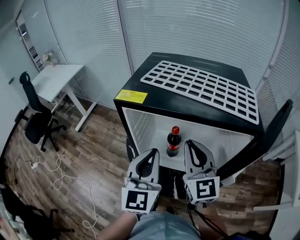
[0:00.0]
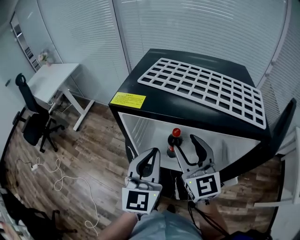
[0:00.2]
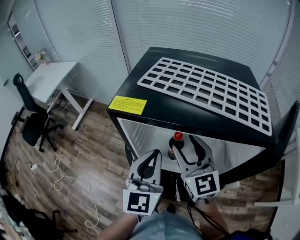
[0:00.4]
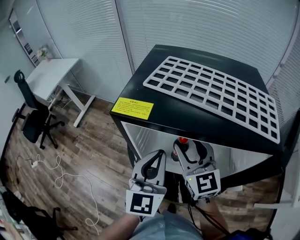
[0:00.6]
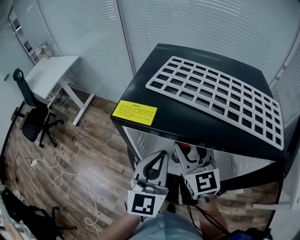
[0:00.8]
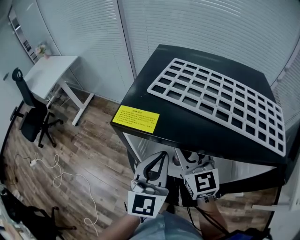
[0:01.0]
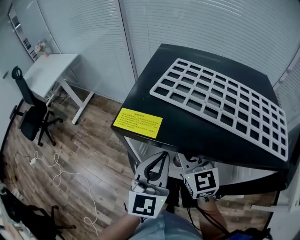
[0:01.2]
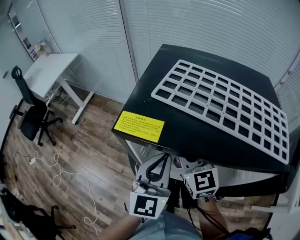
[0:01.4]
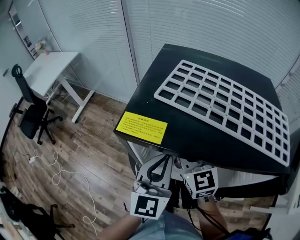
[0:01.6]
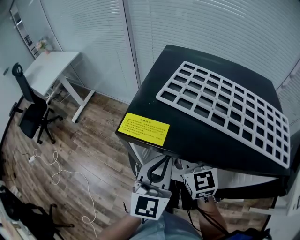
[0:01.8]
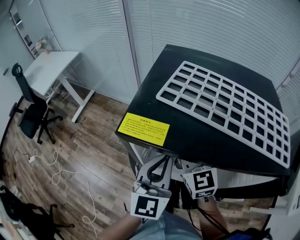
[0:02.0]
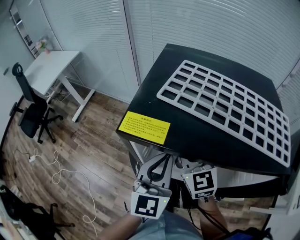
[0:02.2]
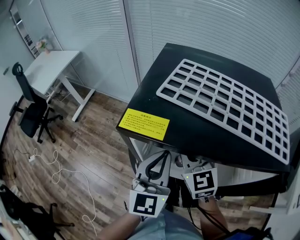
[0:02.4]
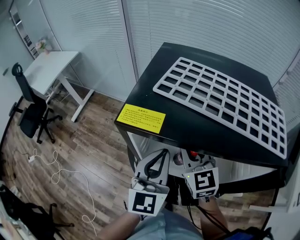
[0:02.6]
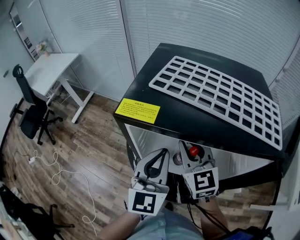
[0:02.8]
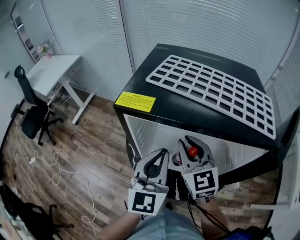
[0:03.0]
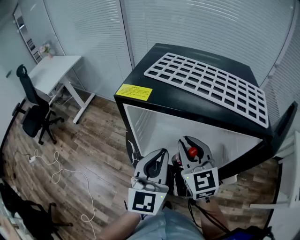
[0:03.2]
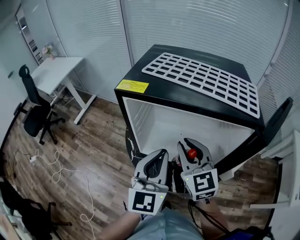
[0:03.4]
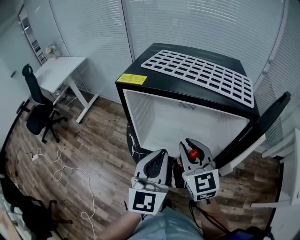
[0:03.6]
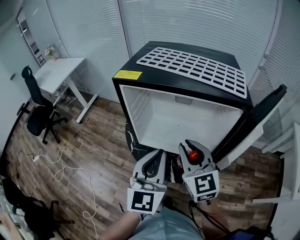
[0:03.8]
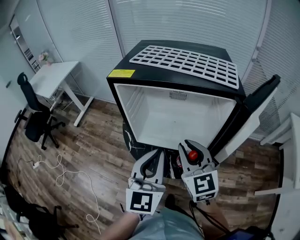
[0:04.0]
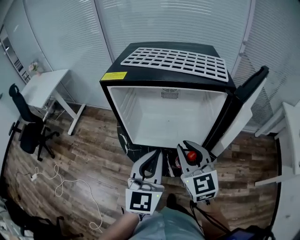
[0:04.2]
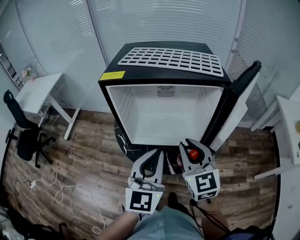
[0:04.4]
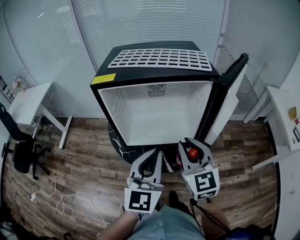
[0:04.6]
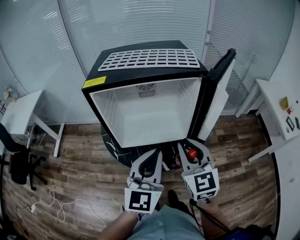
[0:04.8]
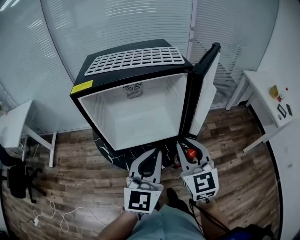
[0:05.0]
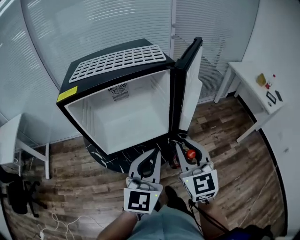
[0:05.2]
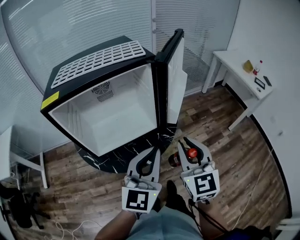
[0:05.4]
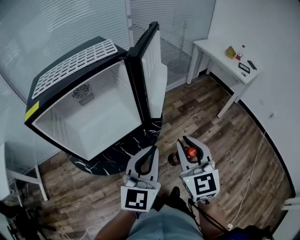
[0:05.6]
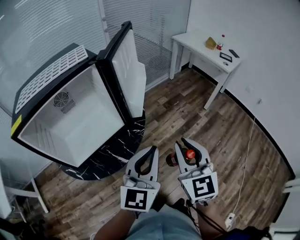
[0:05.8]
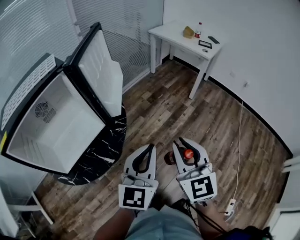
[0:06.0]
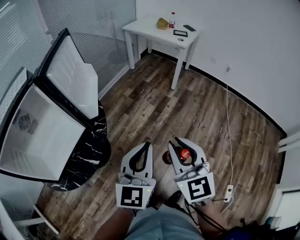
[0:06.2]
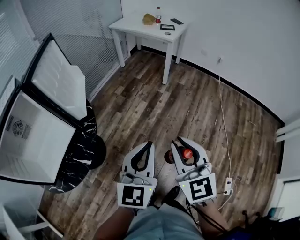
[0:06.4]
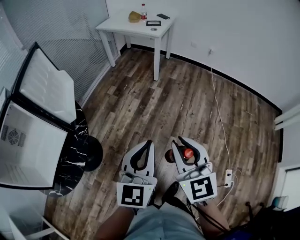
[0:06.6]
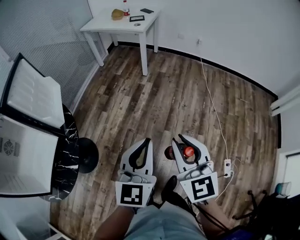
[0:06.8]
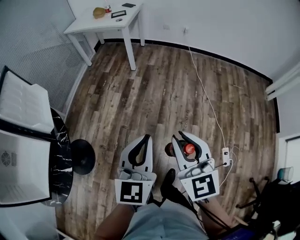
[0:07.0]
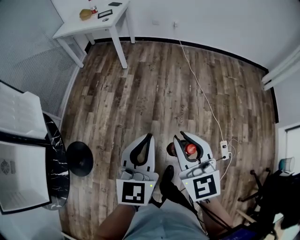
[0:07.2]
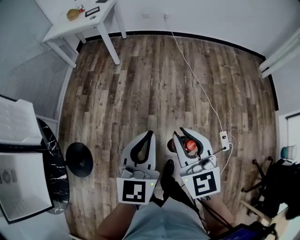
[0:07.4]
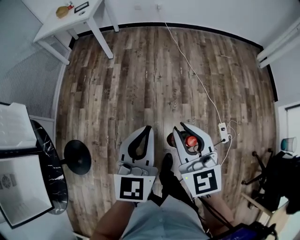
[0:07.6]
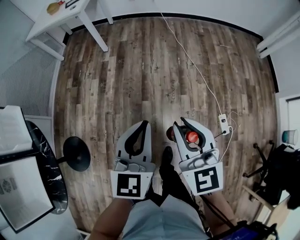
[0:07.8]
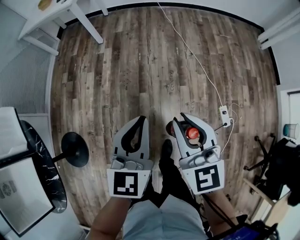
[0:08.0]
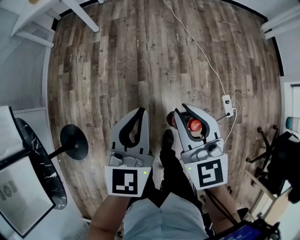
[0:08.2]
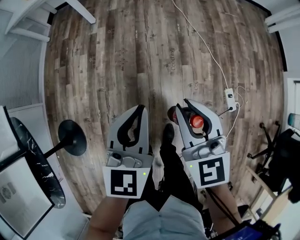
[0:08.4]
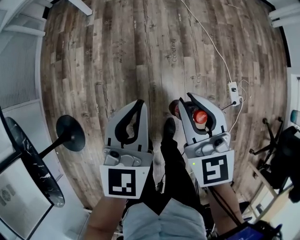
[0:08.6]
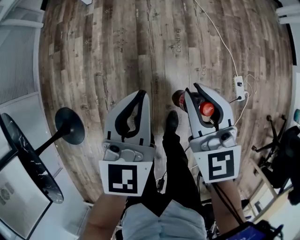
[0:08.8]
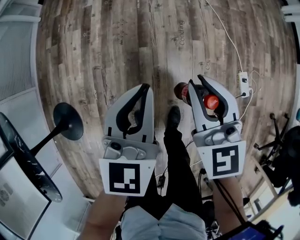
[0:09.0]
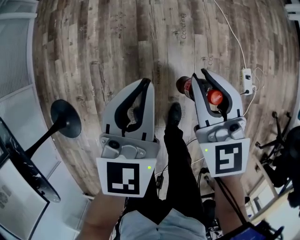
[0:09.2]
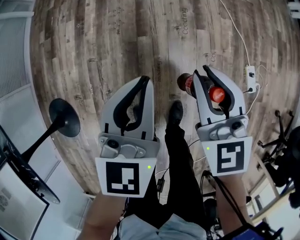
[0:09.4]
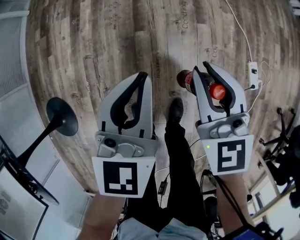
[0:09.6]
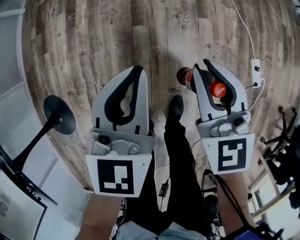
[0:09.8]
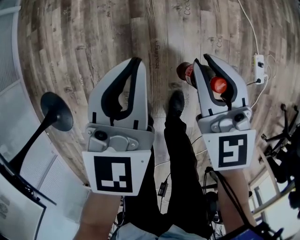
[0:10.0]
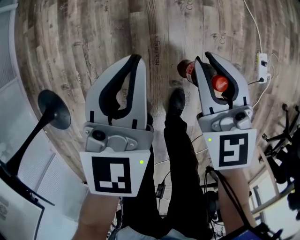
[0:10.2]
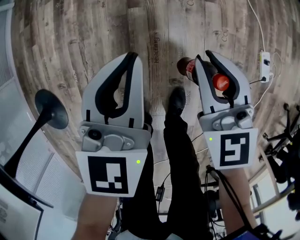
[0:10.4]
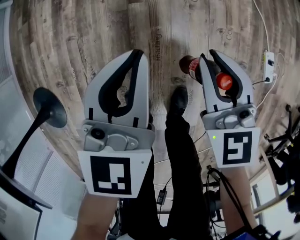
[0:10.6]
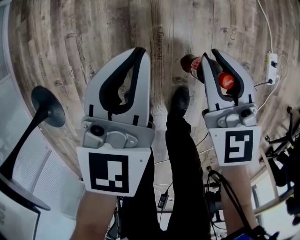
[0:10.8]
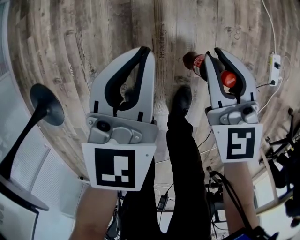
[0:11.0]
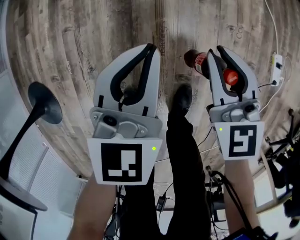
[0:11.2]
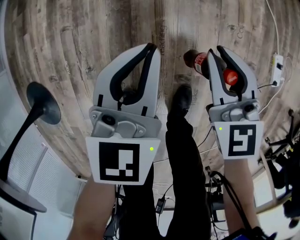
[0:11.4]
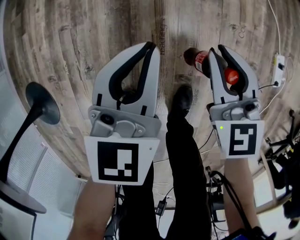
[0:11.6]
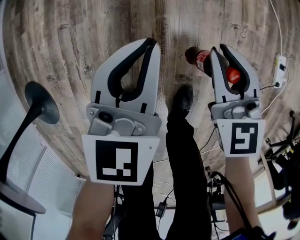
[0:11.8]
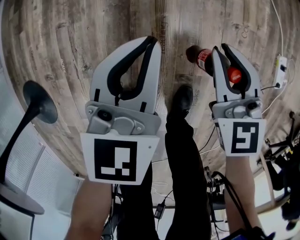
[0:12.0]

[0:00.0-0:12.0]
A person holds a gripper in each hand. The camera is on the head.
0:00.0 to 0:01.6: The right gripper heads forward, downward and to the left, covering roughly 15 cm, and opens up, while the left gripper moves forward, roughly 10 cm.
0:01.6 to 0:03.0: The two grippers go approximately 5 cm backward. The right gripper closes its fingers.
0:03.0 to 0:04.4: Both grippers travel together backward, about 15 cm.
0:04.4 to 0:06.0: The right gripper moves about 35 cm, and swivels about 60 degrees, while the left gripper shifts by approximately 30 cm, and changes its angle by about 60 degrees.
0:06.0 to 0:07.6: The two grippers travel together, roughly 50 cm. The right gripper changes its angle by some 40 degrees. Meanwhile the left gripper turns by some 40 degrees.
0:07.6 to 0:09.0: Both grippers travel together downward, approximately 25 cm.
0:09.0 to 0:10.4: The two grippers go some 25 cm downward.
0:10.4 to 0:12.0: The two grippers go roughly 15 cm downward.

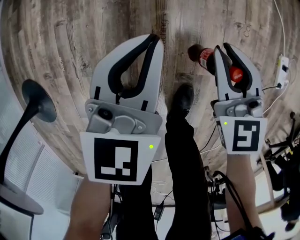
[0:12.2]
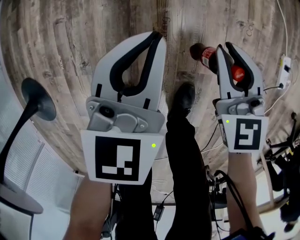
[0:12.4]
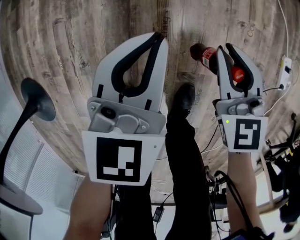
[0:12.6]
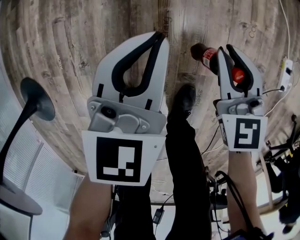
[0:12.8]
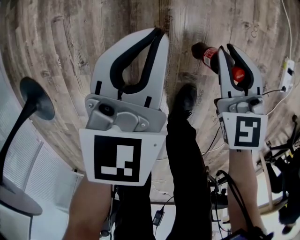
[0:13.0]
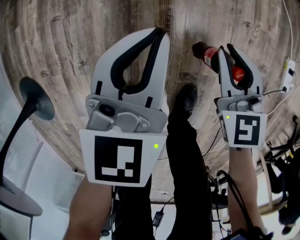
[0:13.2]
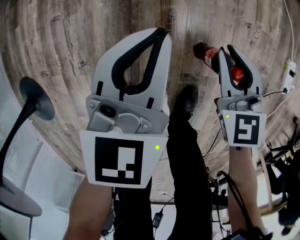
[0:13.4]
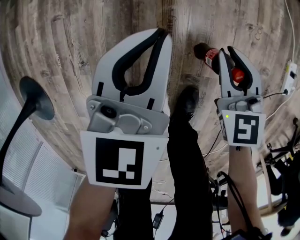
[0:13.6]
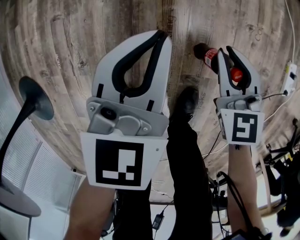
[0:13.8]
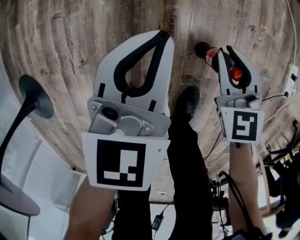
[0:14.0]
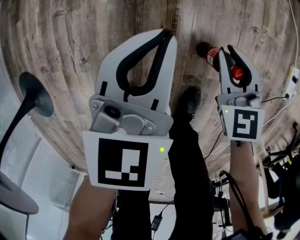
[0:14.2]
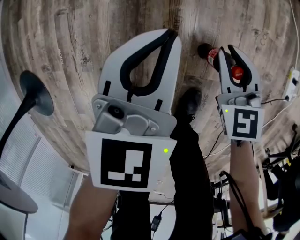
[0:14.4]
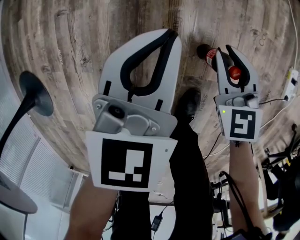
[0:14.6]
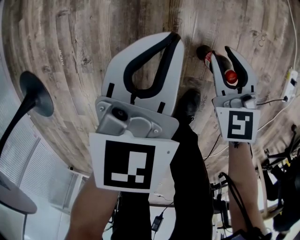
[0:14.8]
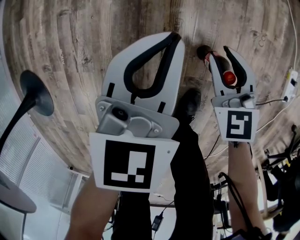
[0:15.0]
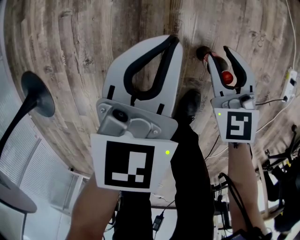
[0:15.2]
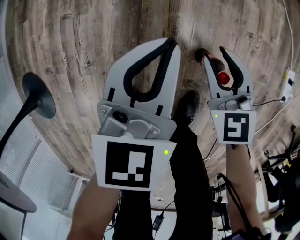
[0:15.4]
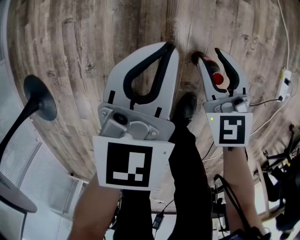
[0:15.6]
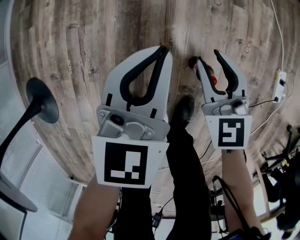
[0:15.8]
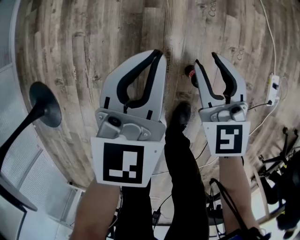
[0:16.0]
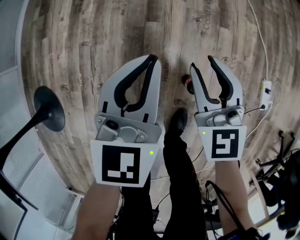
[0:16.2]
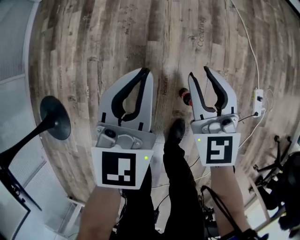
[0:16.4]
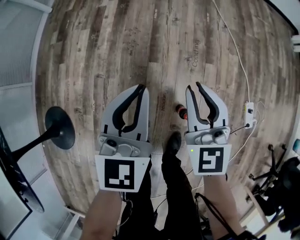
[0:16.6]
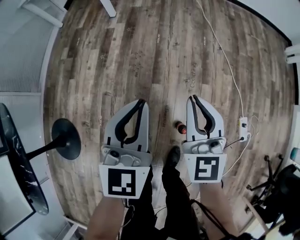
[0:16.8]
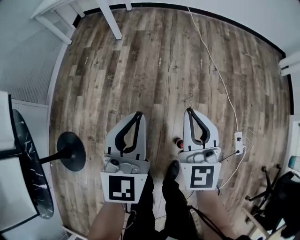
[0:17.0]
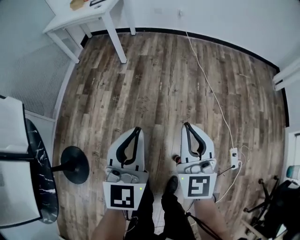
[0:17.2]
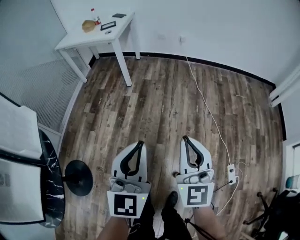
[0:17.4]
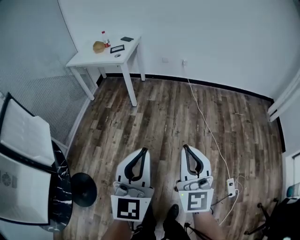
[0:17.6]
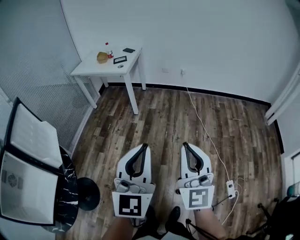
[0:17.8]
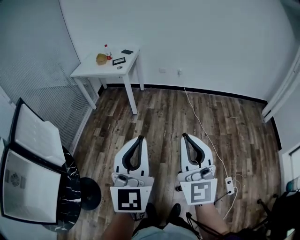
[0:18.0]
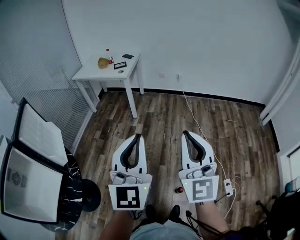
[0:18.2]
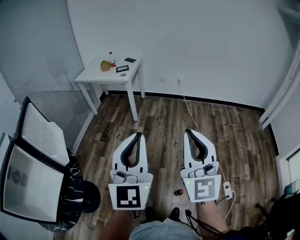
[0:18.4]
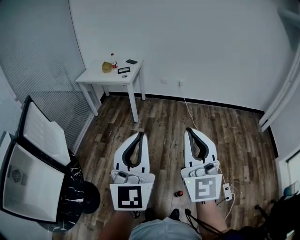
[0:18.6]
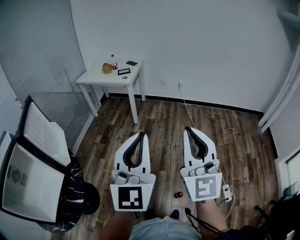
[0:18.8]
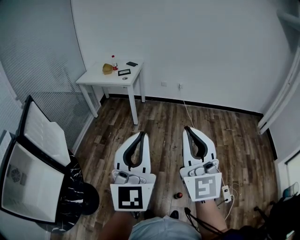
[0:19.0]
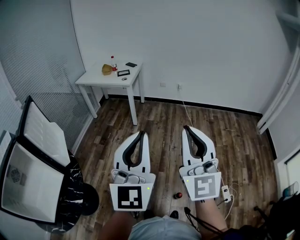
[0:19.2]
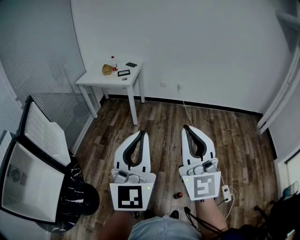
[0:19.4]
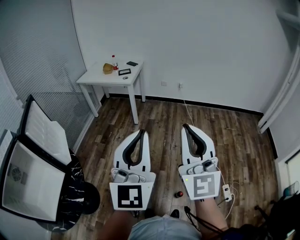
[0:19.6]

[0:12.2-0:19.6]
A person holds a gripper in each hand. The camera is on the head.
0:12.2 to 0:13.6: The right gripper moves downward, some 10 cm.
0:13.6 to 0:15.2: There are only small adjustments of the grippers.
0:15.2 to 0:16.6: The two grippers go about 35 cm upward. The right gripper changes its angle by about 20 degrees.
0:16.6 to 0:18.2: Both grippers move upward, roughly 60 cm. The left gripper angles its fingers upward, by approximately 30 degrees, while the right gripper tips its fingers upward by roughly 30 degrees.
0:18.2 to 0:19.6: The left gripper ends up some 5 cm from where it was; the right gripper goes roughly 5 cm upward.

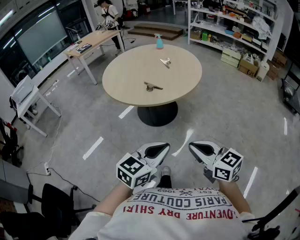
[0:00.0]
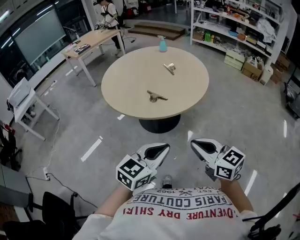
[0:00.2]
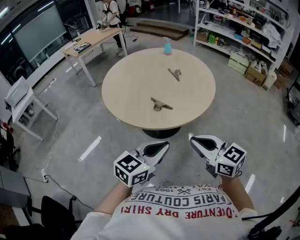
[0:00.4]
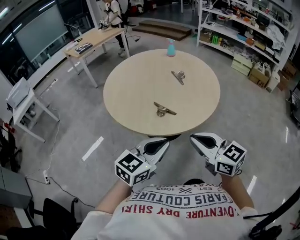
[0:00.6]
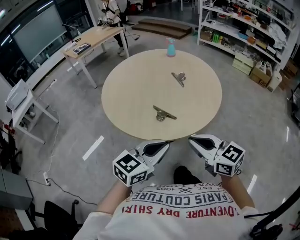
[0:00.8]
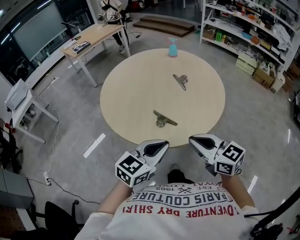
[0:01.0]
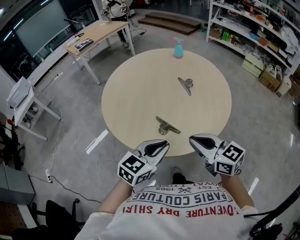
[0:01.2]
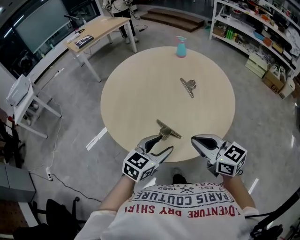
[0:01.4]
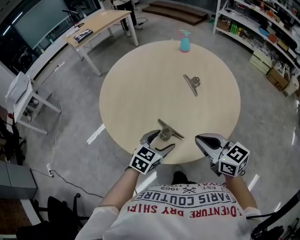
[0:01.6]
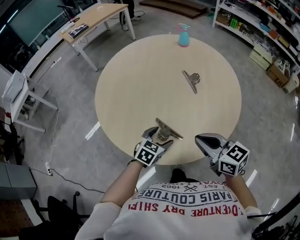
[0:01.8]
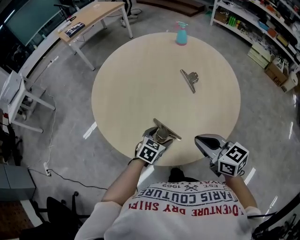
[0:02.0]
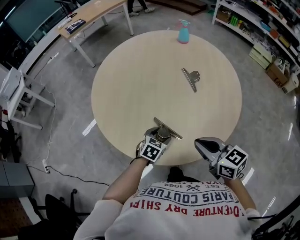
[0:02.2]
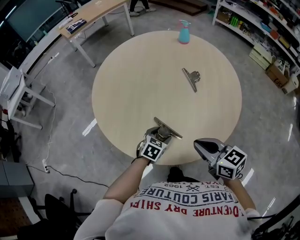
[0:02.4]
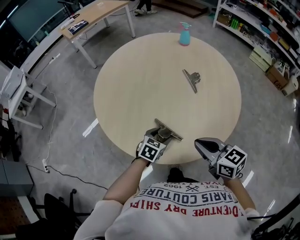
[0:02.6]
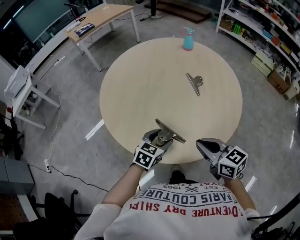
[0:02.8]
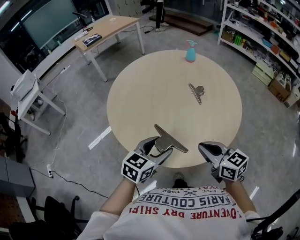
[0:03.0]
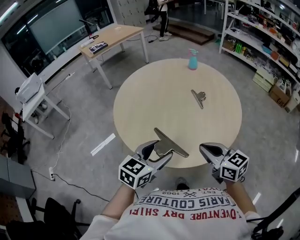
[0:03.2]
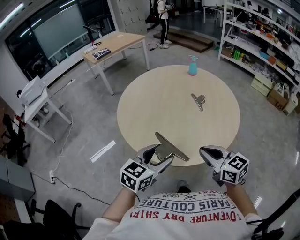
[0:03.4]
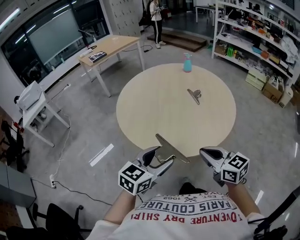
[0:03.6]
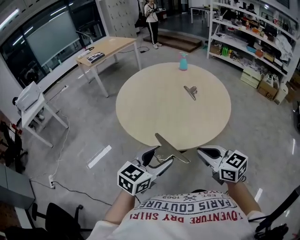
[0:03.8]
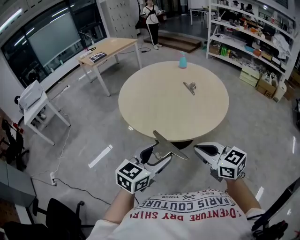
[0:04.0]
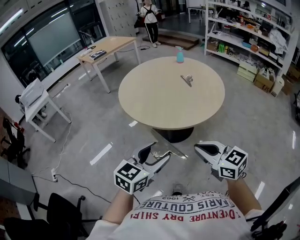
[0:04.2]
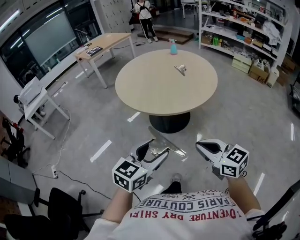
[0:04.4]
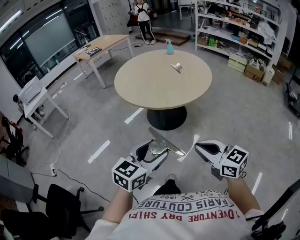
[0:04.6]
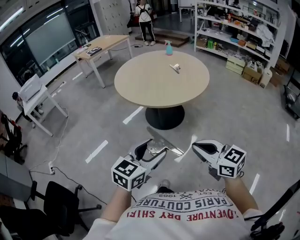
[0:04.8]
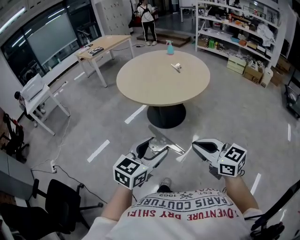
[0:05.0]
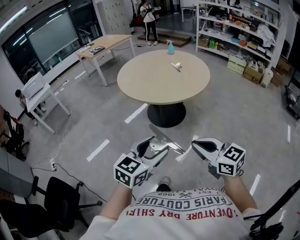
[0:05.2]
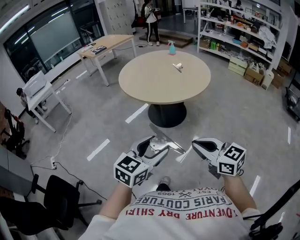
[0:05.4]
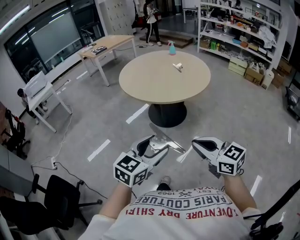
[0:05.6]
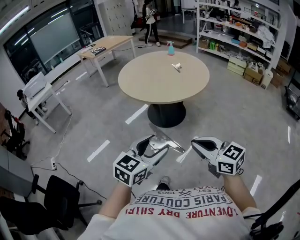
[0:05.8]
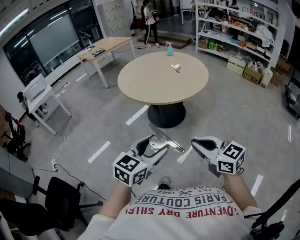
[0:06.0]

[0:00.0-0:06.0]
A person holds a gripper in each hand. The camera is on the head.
0:00.0 to 0:01.6: The two grippers travel together, forward, roughly 50 cm. The left gripper turns by some 20 degrees, and opens.
0:01.6 to 0:03.0: The left gripper shifts roughly 5 cm upward.
0:03.0 to 0:04.4: The grippers both shift backward by roughly 40 cm.
0:04.4 to 0:06.0: Both grippers move backward, about 15 cm.
